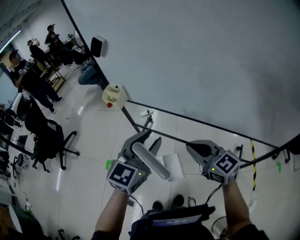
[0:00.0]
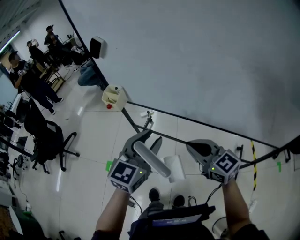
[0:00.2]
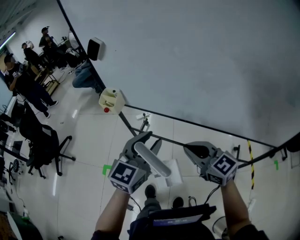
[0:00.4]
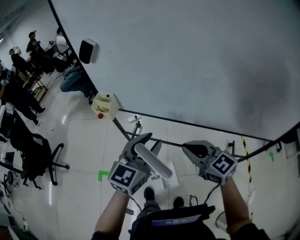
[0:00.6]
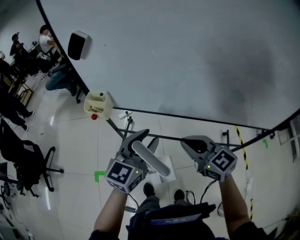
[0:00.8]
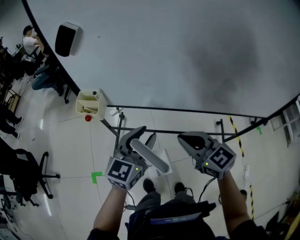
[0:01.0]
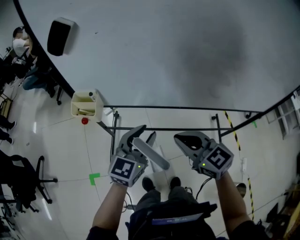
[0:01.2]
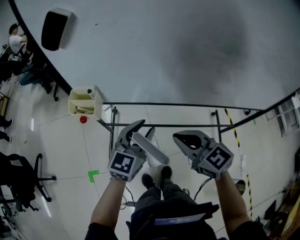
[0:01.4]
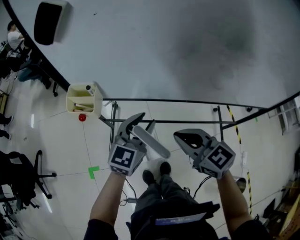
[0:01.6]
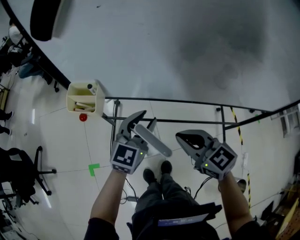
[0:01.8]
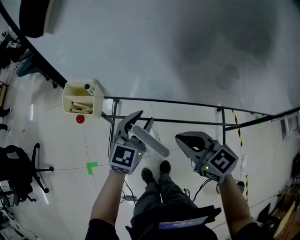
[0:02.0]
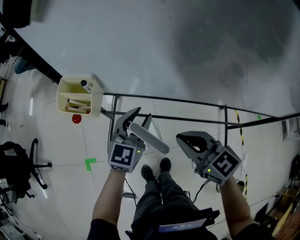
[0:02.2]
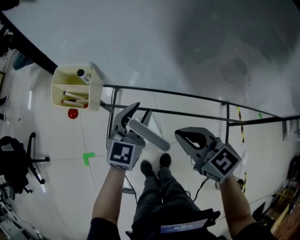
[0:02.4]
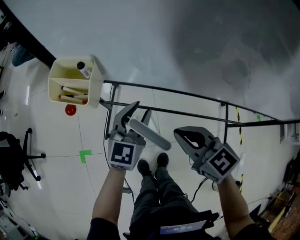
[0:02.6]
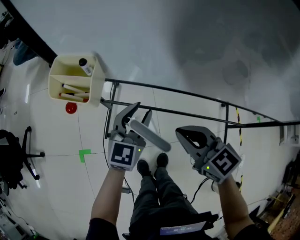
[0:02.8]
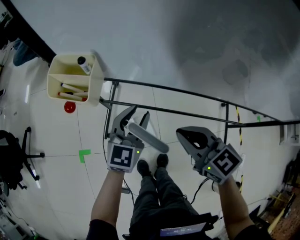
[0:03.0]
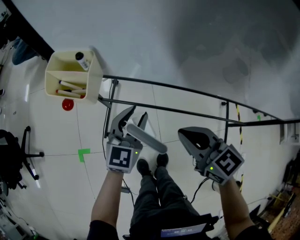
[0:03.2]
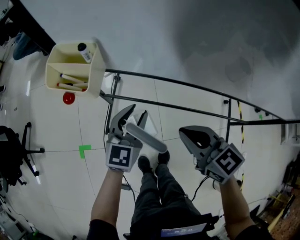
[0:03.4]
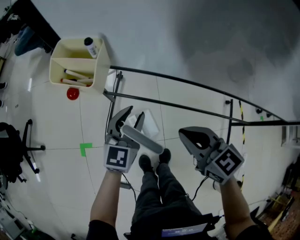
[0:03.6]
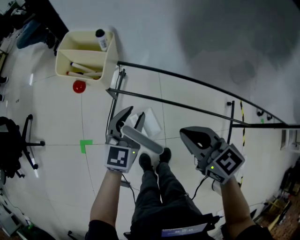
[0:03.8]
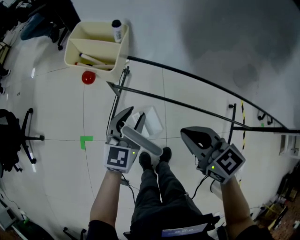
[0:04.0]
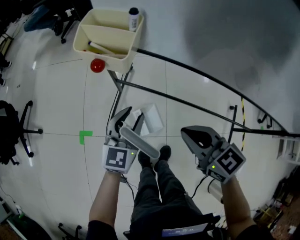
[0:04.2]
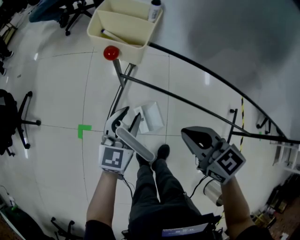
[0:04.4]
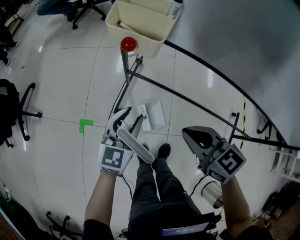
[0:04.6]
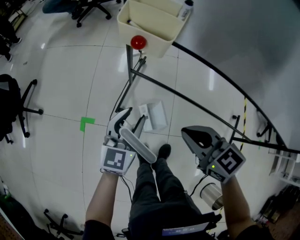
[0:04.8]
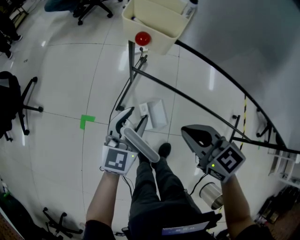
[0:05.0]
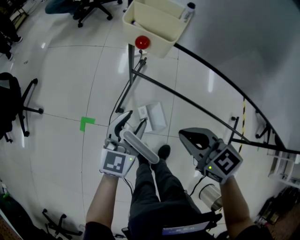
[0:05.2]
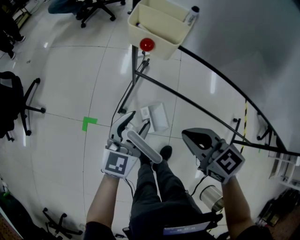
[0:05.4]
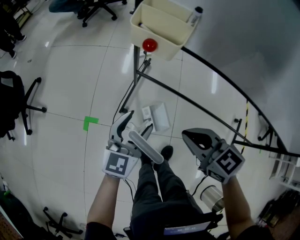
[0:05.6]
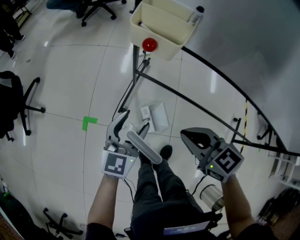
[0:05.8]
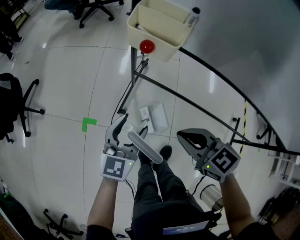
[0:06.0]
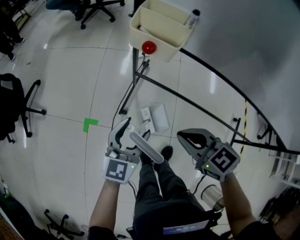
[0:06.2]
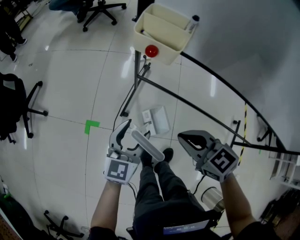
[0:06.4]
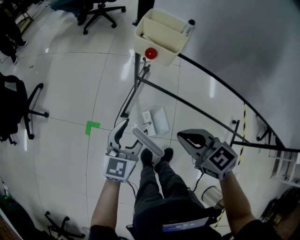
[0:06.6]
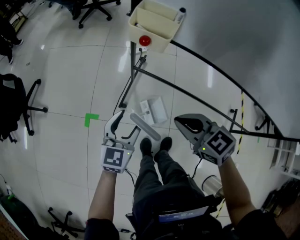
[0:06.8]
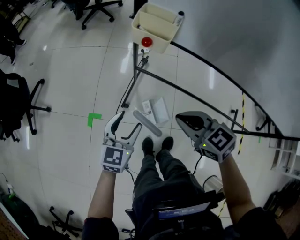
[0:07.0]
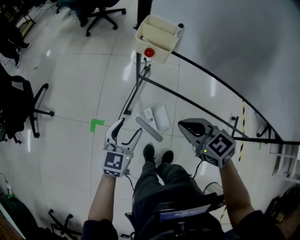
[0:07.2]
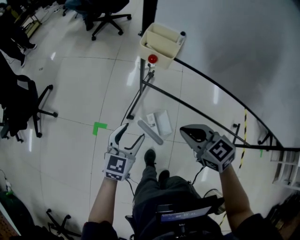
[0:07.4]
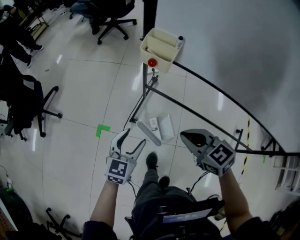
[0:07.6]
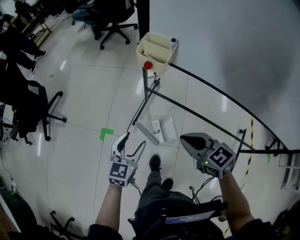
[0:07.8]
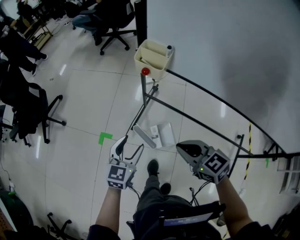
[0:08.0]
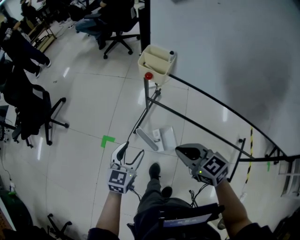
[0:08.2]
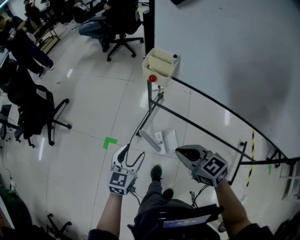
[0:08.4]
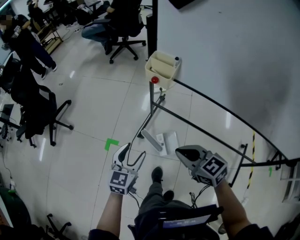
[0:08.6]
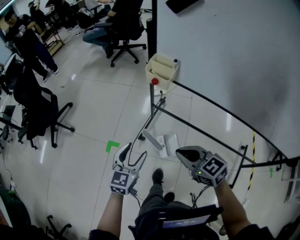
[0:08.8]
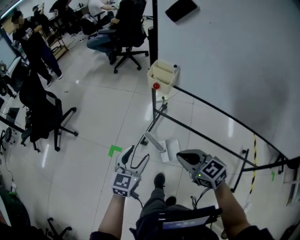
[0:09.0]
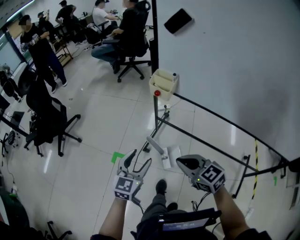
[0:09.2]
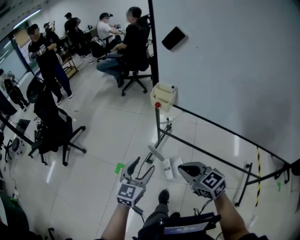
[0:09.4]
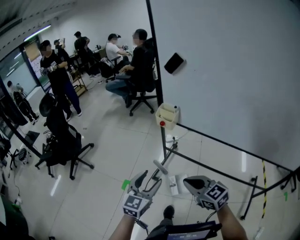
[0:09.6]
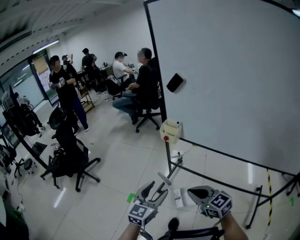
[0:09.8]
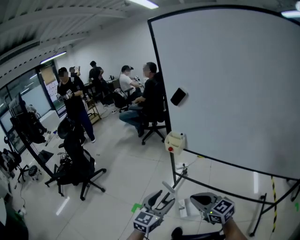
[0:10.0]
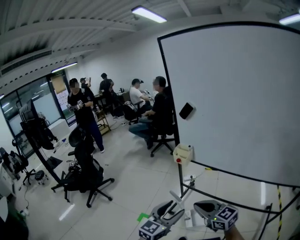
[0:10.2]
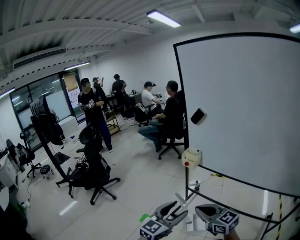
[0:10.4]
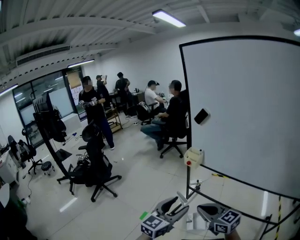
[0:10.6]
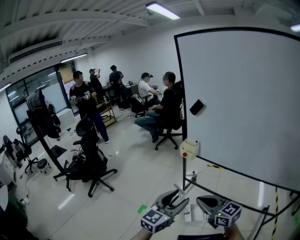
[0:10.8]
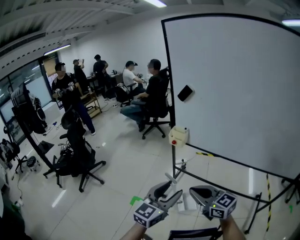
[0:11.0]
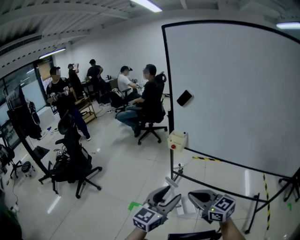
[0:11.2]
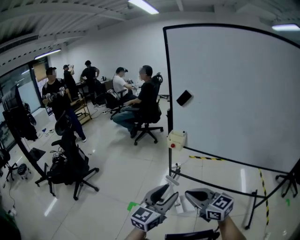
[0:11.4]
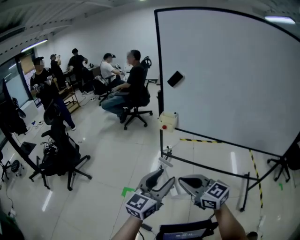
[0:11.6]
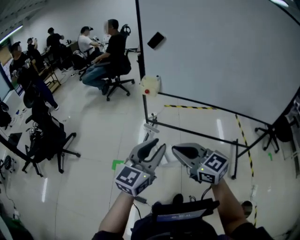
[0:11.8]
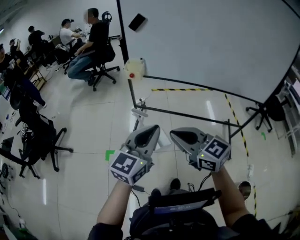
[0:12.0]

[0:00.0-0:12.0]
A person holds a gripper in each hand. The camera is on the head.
0:00.0 to 0:01.6: The right gripper goes about 20 cm to the left, forward and downward, and rotates approximately 20 degrees. The left gripper heads forward, downward and to the left, covering some 25 cm, and swivels approximately 20 degrees.
0:01.6 to 0:03.0: The left gripper goes approximately 15 cm downward and to the left; the right gripper shifts approximately 10 cm downward and forward.
0:03.0 to 0:04.4: The left gripper shifts roughly 15 cm to the left, downward and backward, while the right gripper heads to the left and downward, covering approximately 10 cm.
0:04.4 to 0:06.0: Both grippers travel together to the left, about 5 cm. The left gripper opens its fingers.
0:06.0 to 0:07.6: The right gripper shifts approximately 5 cm upward; the left gripper shifts about 5 cm backward.
0:07.6 to 0:09.0: The right gripper goes about 5 cm backward. The left gripper travels upward by approximately 10 cm.
0:09.0 to 0:10.4: The grippers both shift upward and backward by roughly 25 cm. The right gripper swivels approximately 20 degrees.
0:10.4 to 0:12.0: The right gripper heads backward and to the left, covering some 10 cm. The left gripper moves backward, about 5 cm, and closes up.

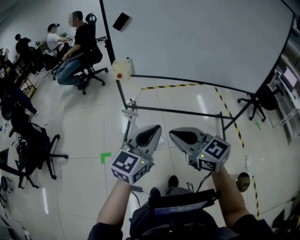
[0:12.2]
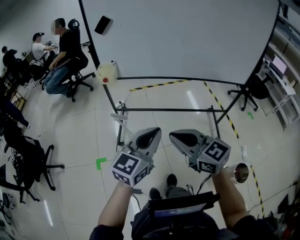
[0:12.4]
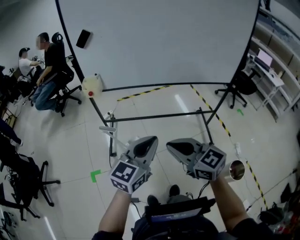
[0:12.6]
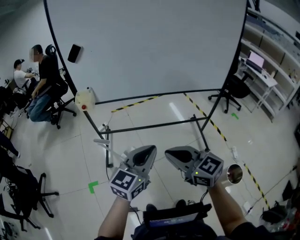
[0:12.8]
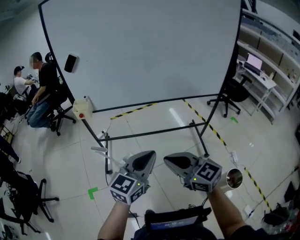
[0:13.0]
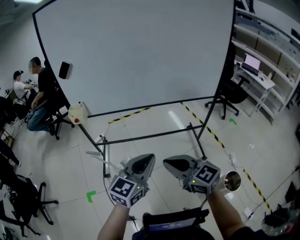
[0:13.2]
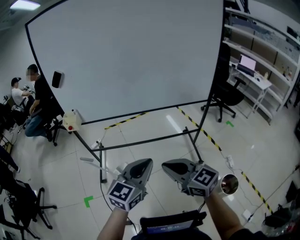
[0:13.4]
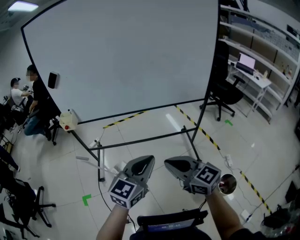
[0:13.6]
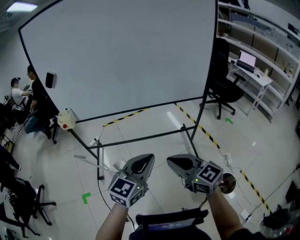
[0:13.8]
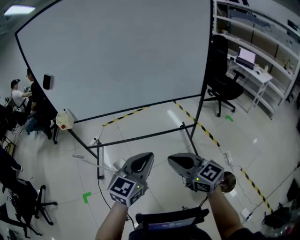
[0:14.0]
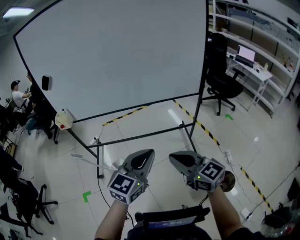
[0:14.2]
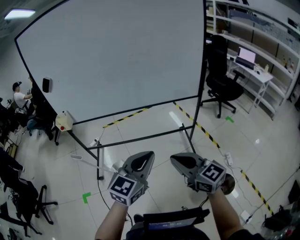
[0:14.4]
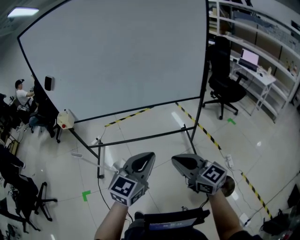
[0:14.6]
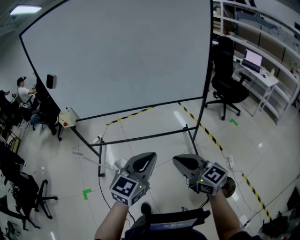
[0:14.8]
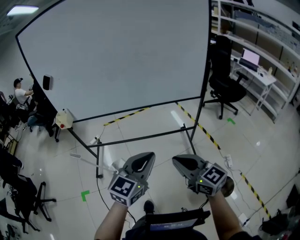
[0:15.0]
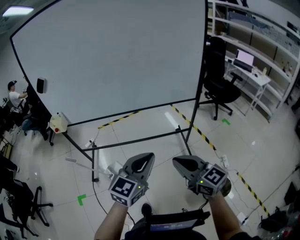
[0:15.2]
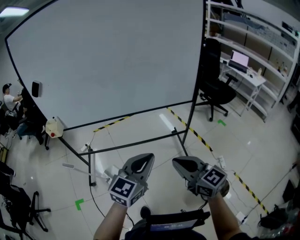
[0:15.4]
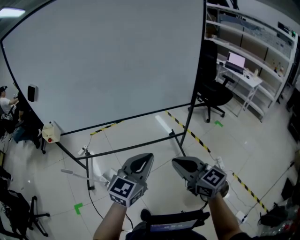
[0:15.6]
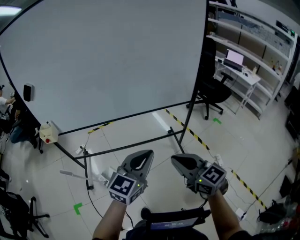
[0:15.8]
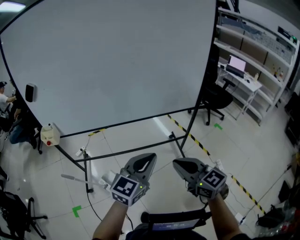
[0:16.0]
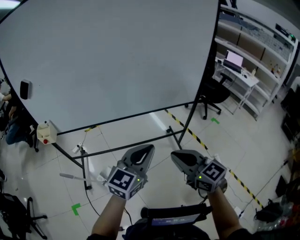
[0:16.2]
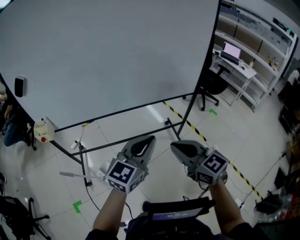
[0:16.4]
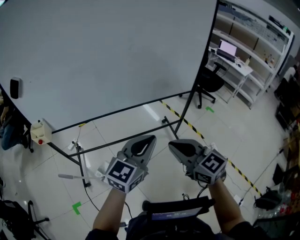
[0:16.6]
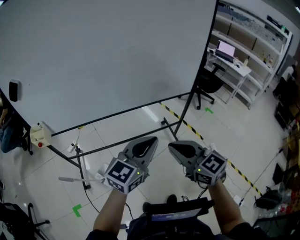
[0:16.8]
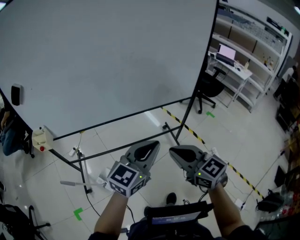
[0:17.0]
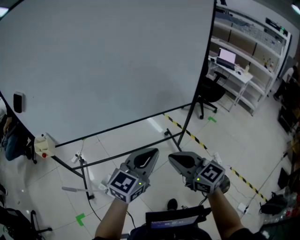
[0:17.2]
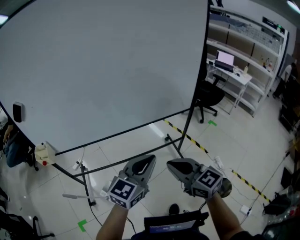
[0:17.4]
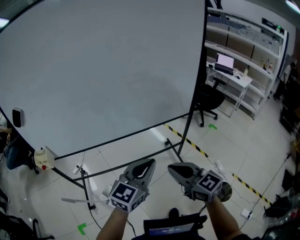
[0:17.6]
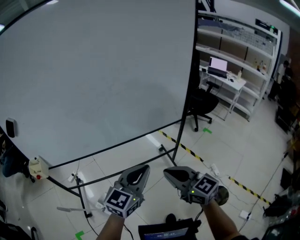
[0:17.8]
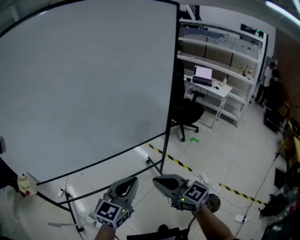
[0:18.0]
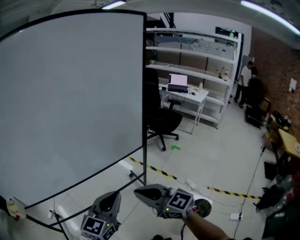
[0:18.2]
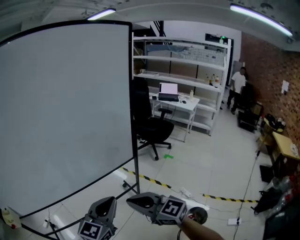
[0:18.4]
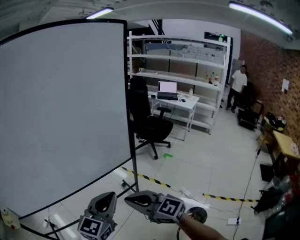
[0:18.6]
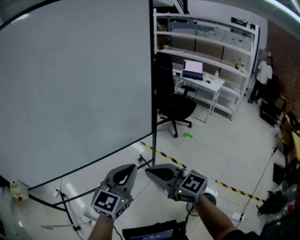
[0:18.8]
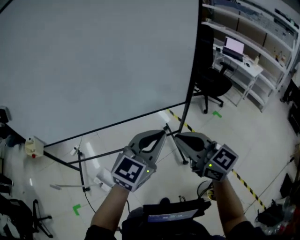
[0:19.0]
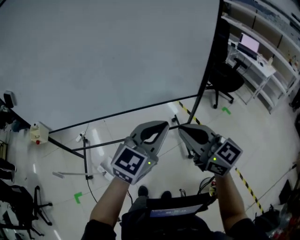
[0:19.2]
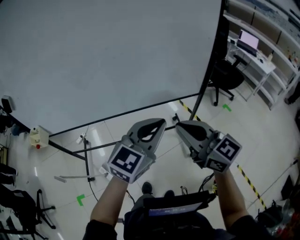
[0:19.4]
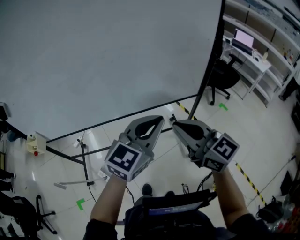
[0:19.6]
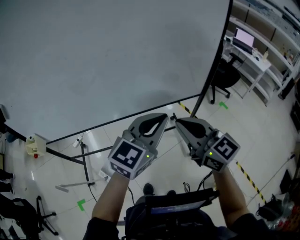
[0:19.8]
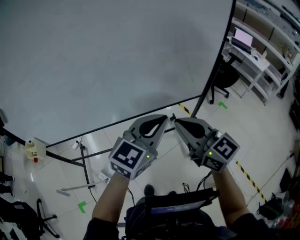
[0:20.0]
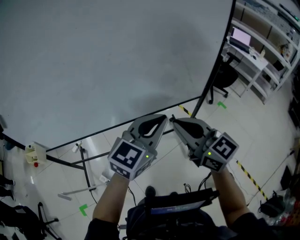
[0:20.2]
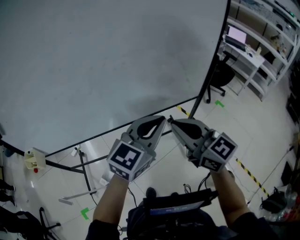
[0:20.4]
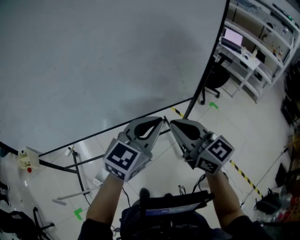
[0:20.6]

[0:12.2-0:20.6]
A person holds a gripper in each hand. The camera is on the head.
0:12.2 to 0:13.6: Both grippers move to the right, approximately 25 cm.
0:13.6 to 0:15.0: Both grippers move to the right, approximately 10 cm.
0:15.0 to 0:16.4: Both grippers move forward and to the left, approximately 15 cm.
0:16.4 to 0:17.8: The left gripper ends up approximately 5 cm from where it was, while the right gripper moves about 5 cm.
0:17.8 to 0:19.2: The right gripper moves forward and to the right, roughly 15 cm. The left gripper is displaced to the right and forward by roughly 15 cm.
0:19.2 to 0:20.6: Both grippers travel together forward and to the left, approximately 10 cm.

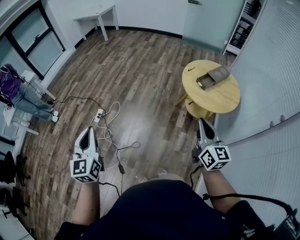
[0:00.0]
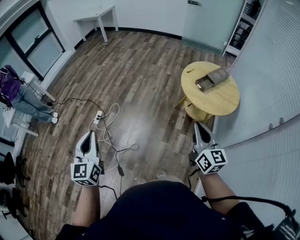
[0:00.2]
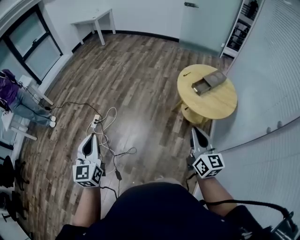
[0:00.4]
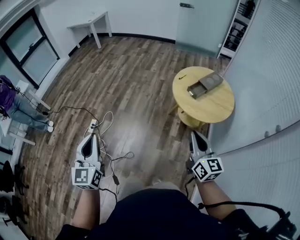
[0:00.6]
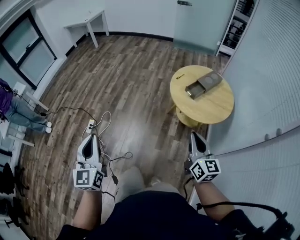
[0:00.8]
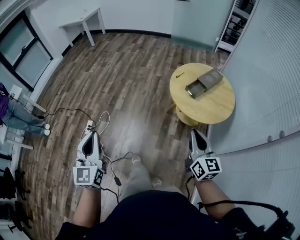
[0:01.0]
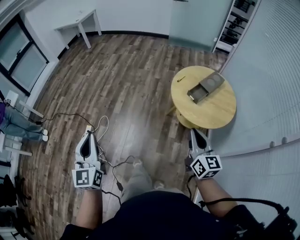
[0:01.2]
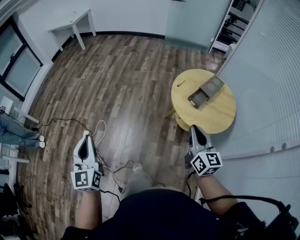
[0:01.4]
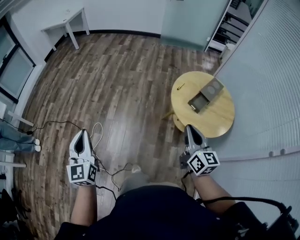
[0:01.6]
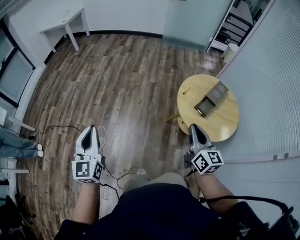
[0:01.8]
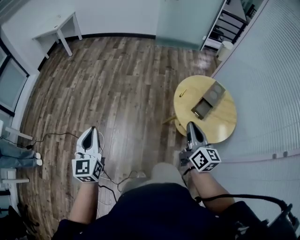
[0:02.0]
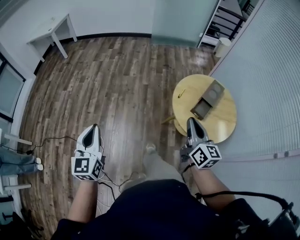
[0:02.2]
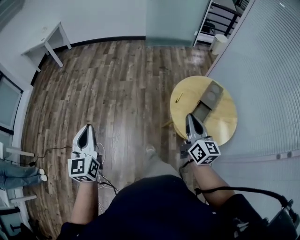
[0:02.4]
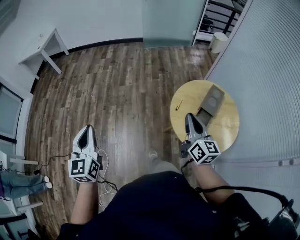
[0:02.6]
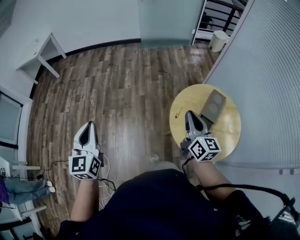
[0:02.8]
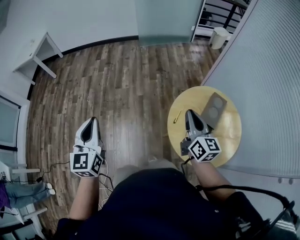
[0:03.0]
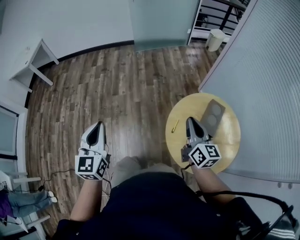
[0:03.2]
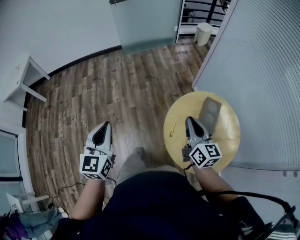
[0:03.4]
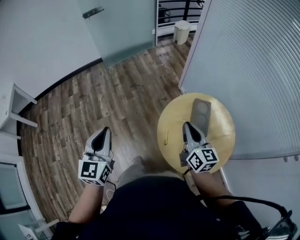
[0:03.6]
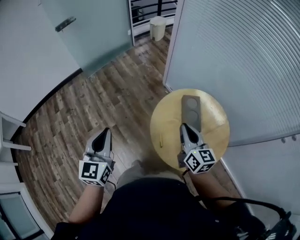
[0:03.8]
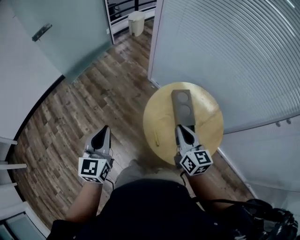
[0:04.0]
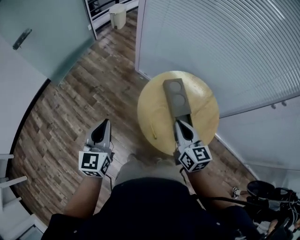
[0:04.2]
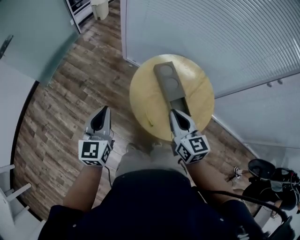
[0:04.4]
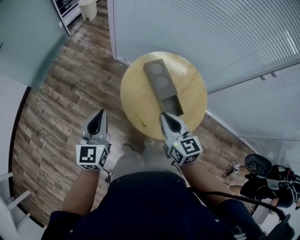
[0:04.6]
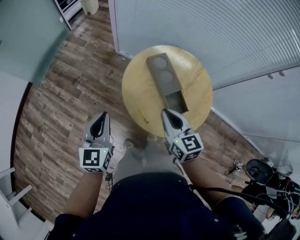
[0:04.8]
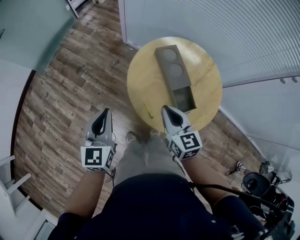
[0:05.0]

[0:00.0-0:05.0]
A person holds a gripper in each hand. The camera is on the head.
0:00.0 to 0:01.6: Both grippers move forward, roughly 30 cm.
0:01.6 to 0:03.4: The two grippers travel together, about 50 cm. The right gripper swivels approximately 20 degrees; the left gripper turns by roughly 40 degrees.
0:03.4 to 0:05.0: The right gripper travels downward by approximately 15 cm, and rotates approximately 40 degrees, while the left gripper changes place by roughly 30 cm, and changes its angle by roughly 50 degrees.
